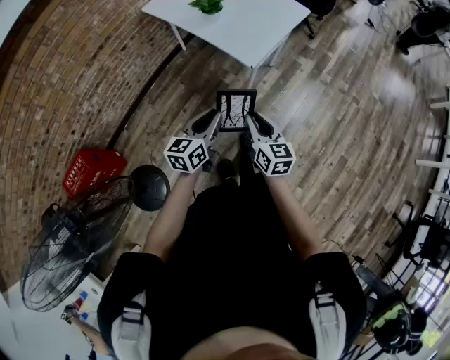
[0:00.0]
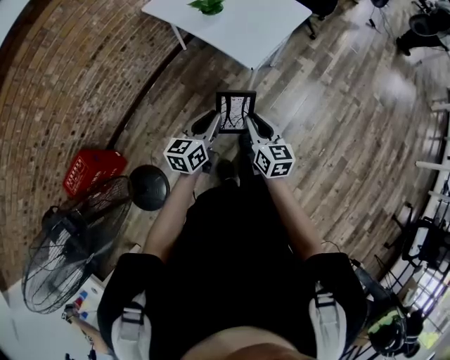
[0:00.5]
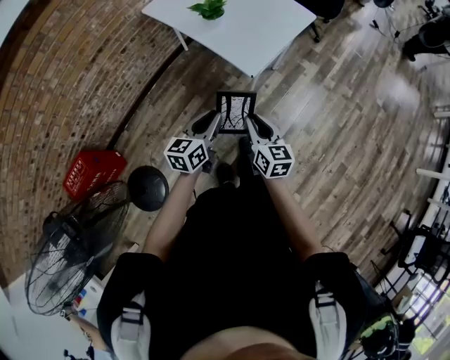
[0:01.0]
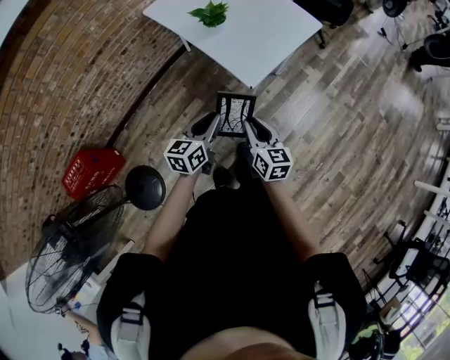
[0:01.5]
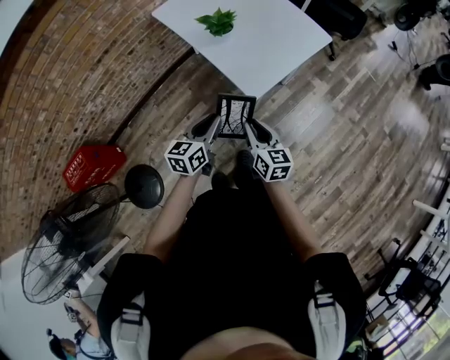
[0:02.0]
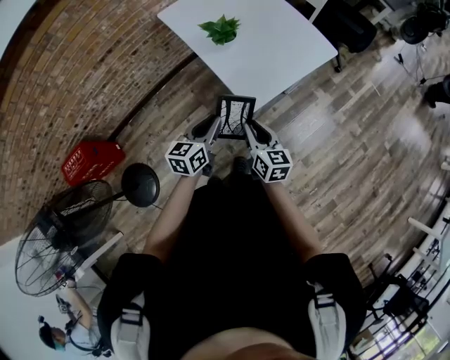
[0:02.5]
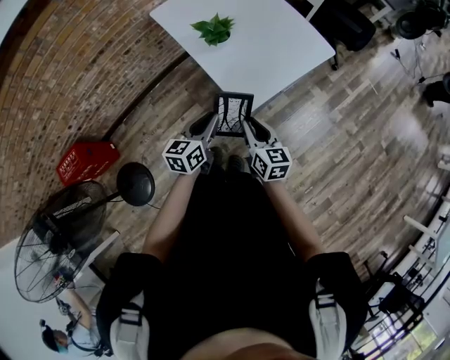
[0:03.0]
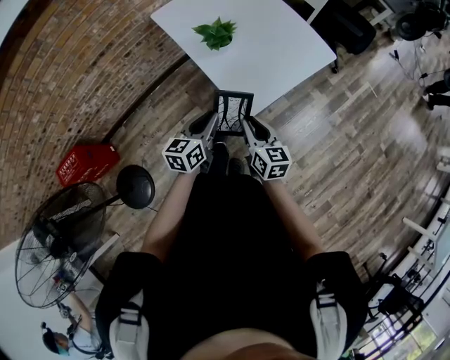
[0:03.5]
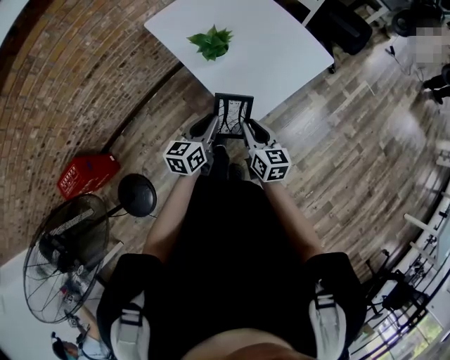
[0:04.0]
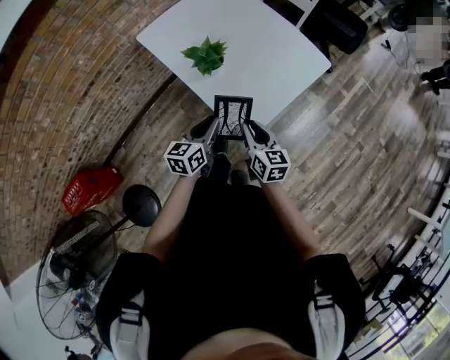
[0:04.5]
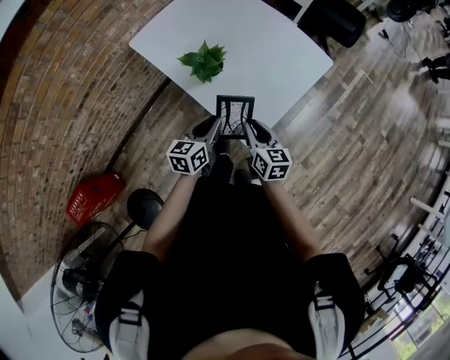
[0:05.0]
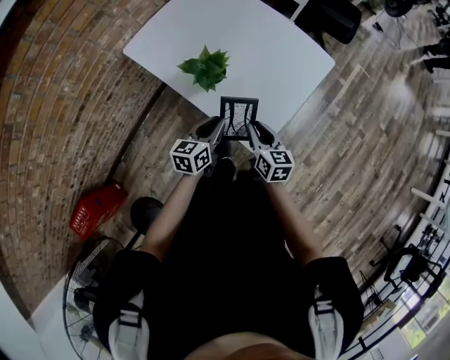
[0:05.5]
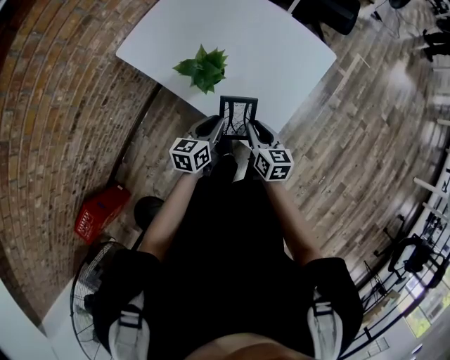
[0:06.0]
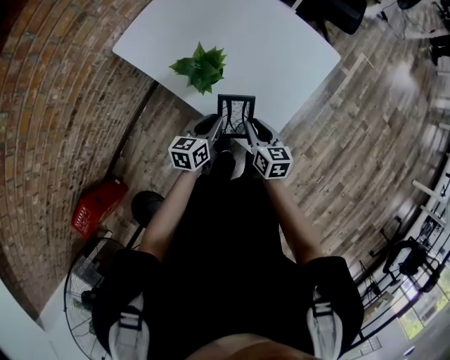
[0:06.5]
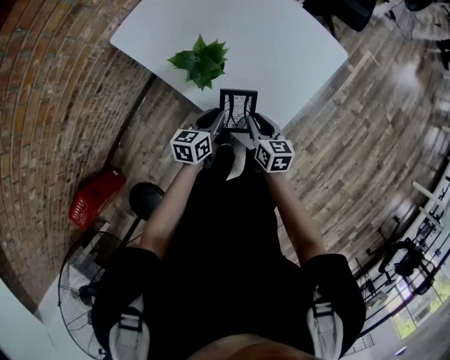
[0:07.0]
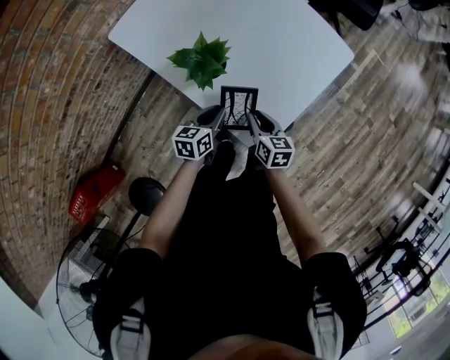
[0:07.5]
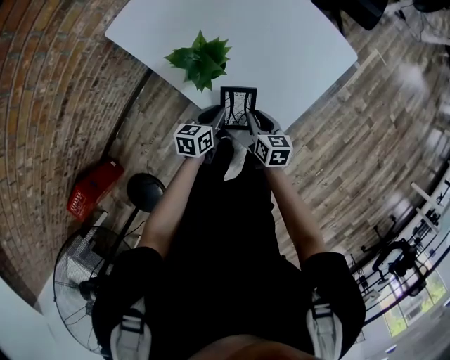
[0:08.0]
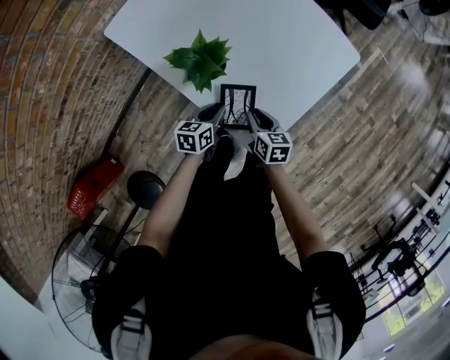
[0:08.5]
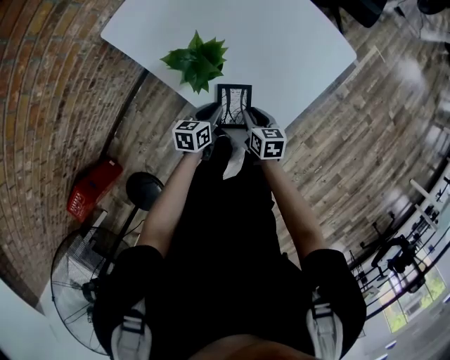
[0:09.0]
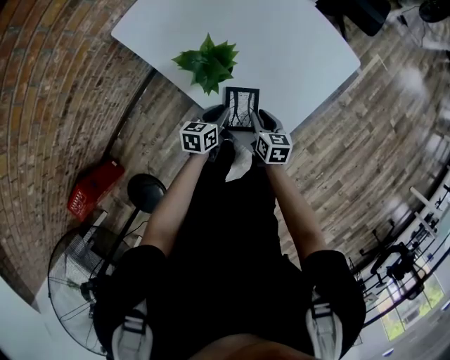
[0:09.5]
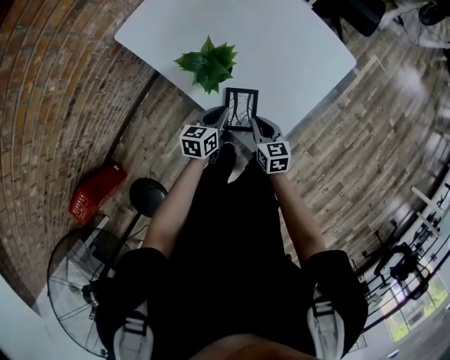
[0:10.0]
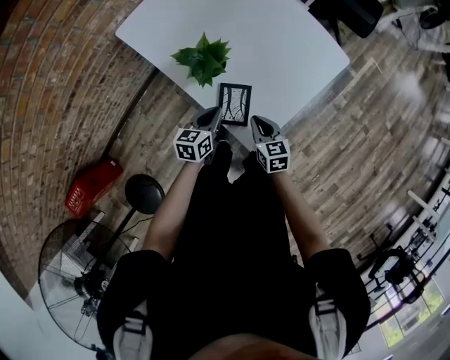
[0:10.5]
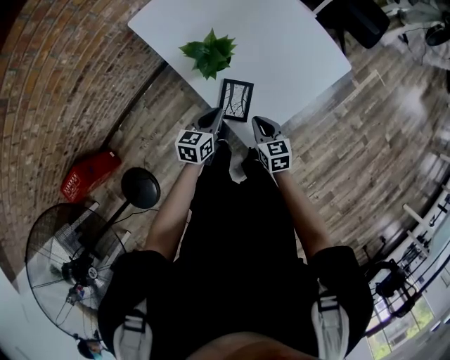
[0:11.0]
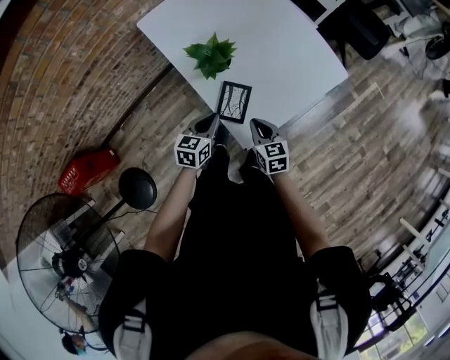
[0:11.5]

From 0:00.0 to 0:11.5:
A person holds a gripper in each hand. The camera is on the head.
From 0:00.0 to 0:02.0: Both grippers travel together forward, about 15 cm.
From 0:02.0 to 0:04.0: The grippers both shift forward by about 15 cm.
From 0:04.0 to 0:06.0: The two grippers go roughly 15 cm forward and downward.
From 0:06.0 to 0:07.5: The two grippers go about 10 cm downward.
From 0:07.5 to 0:09.5: There are only small adjustments of the grippers.
From 0:09.5 to 0:11.5: Both grippers move upward and backward, approximately 15 cm. The right gripper changes its angle by roughly 30 degrees, and closes up.

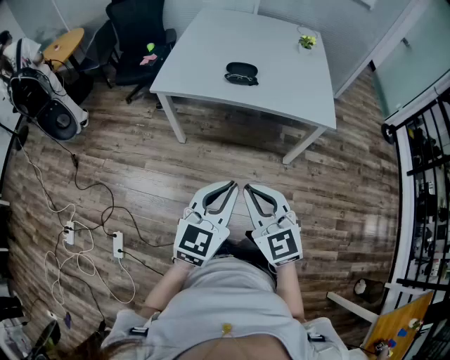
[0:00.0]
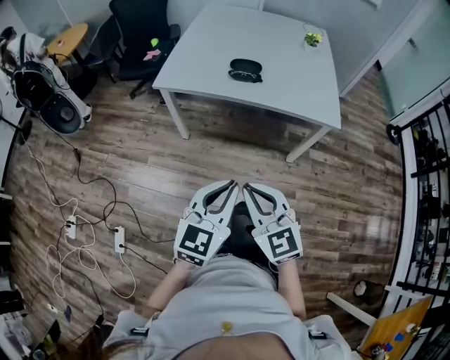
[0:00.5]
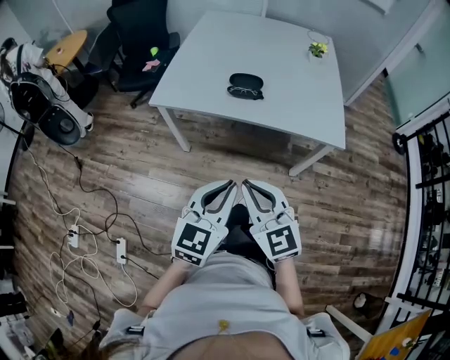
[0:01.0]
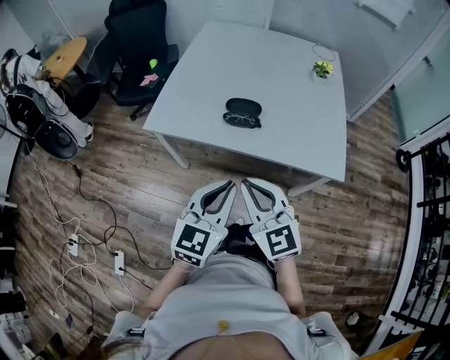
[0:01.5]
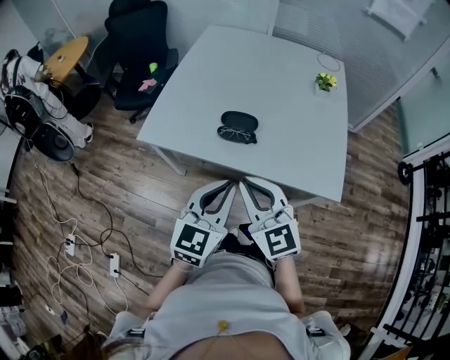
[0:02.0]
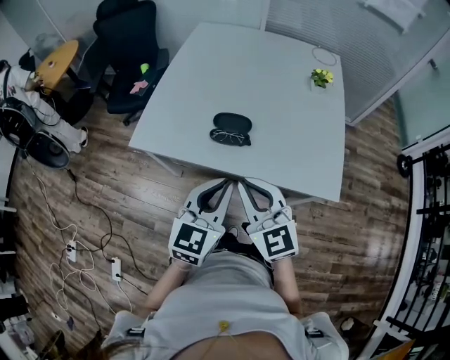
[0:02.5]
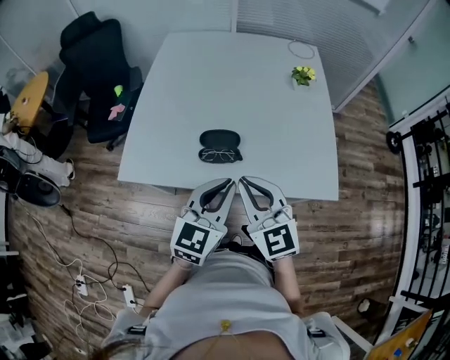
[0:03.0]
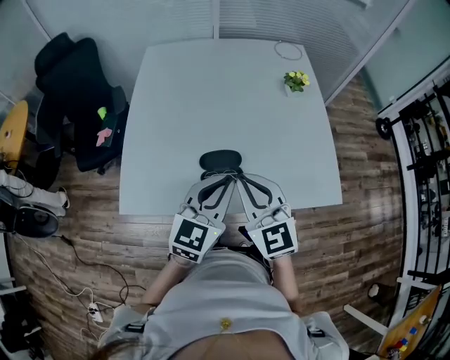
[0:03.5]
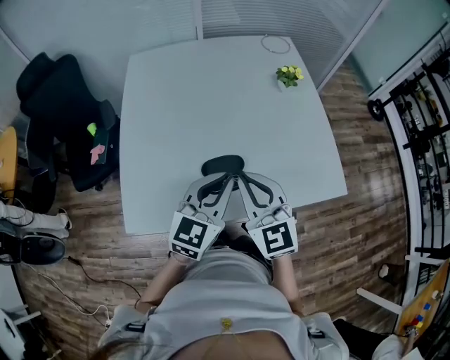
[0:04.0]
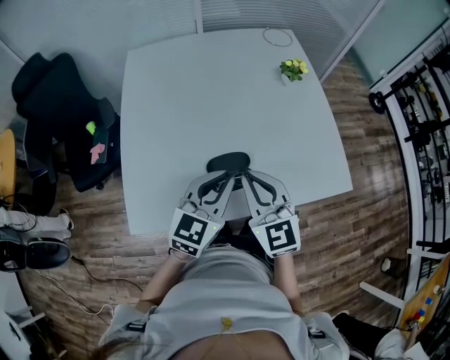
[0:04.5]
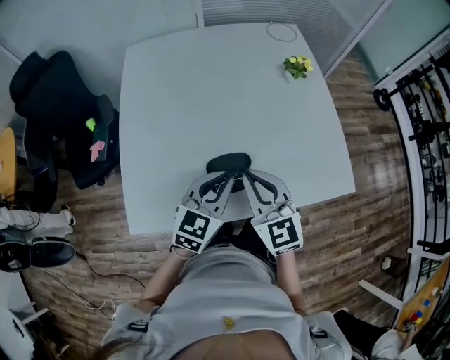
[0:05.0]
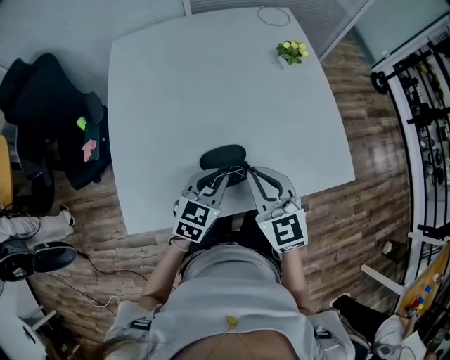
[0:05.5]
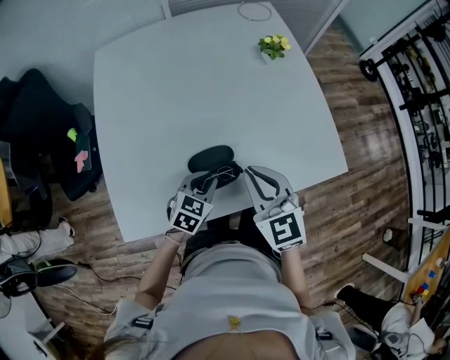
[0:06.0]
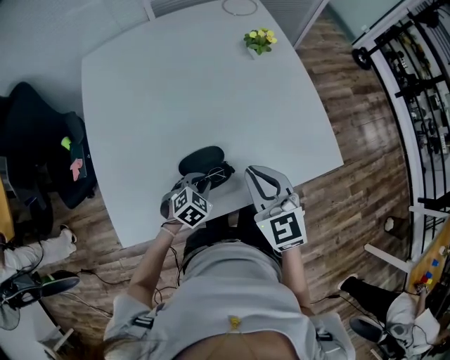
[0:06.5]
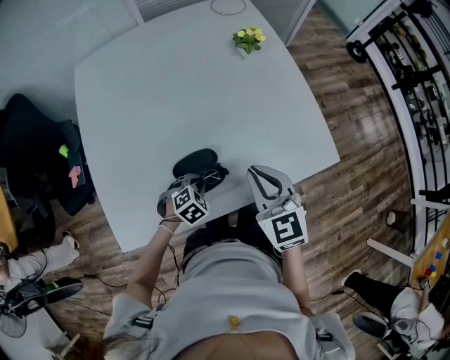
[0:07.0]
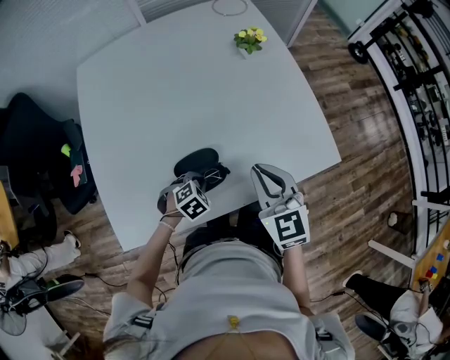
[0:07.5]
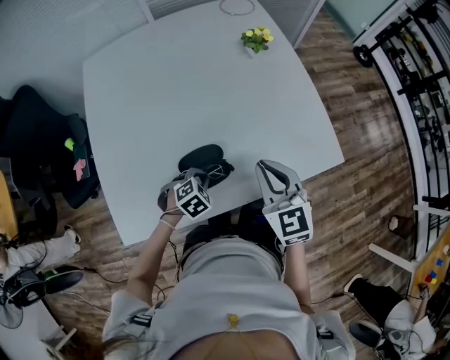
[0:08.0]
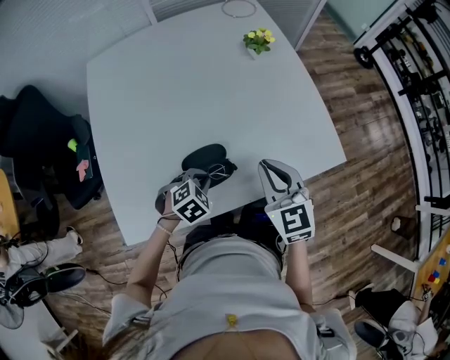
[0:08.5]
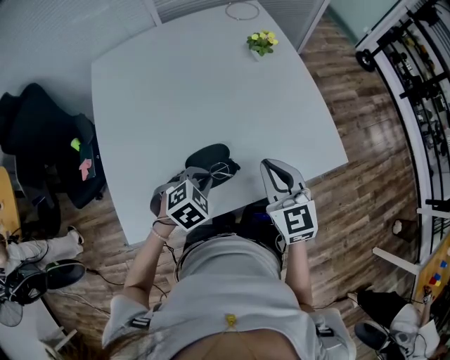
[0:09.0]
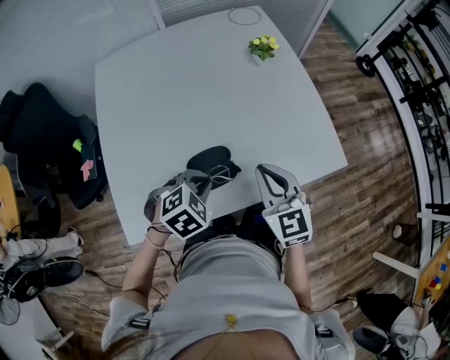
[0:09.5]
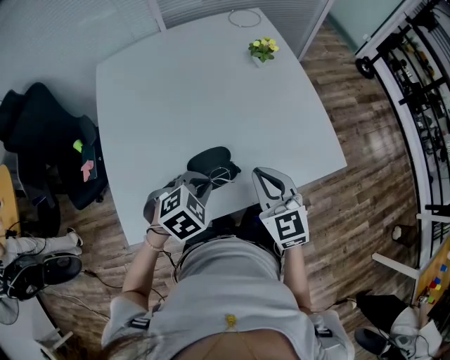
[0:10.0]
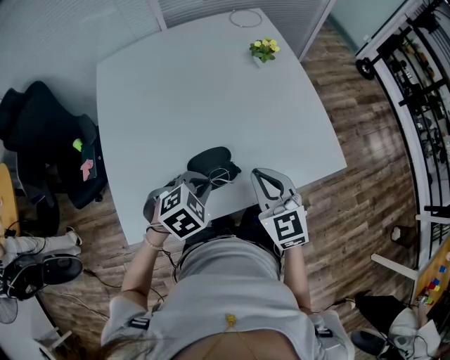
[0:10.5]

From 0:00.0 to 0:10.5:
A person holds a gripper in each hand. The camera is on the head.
From 0:00.0 to 0:02.0: Both grippers travel together forward, some 30 cm.
From 0:02.0 to 0:04.0: The left gripper moves about 25 cm, and turns by roughly 30 degrees. The right gripper shifts by some 25 cm, and turns by some 30 degrees.
From 0:04.0 to 0:06.5: The left gripper goes about 25 cm downward, and tips its fingers downward by approximately 40 degrees. Meanwhile the right gripper shifts about 10 cm to the right and downward.
From 0:06.5 to 0:08.5: The grippers stay close to where they were, moving slightly.
From 0:08.5 to 0:10.5: The left gripper moves upward, some 10 cm.

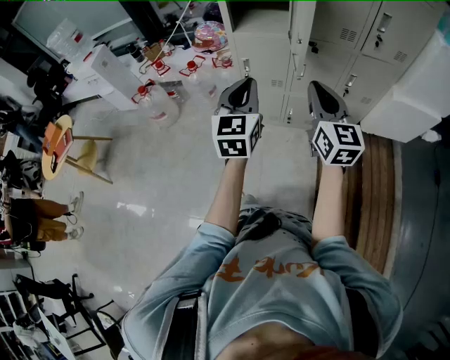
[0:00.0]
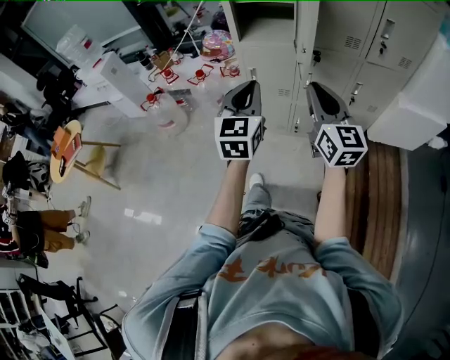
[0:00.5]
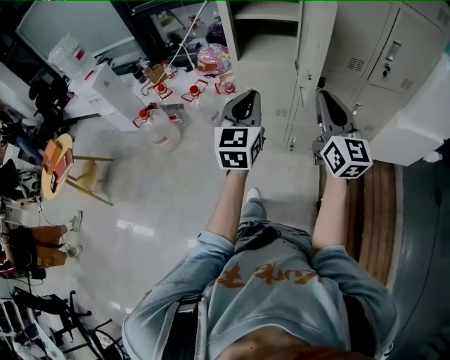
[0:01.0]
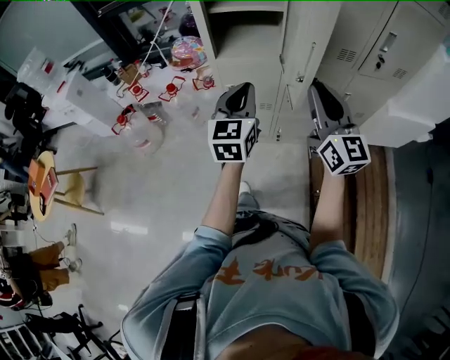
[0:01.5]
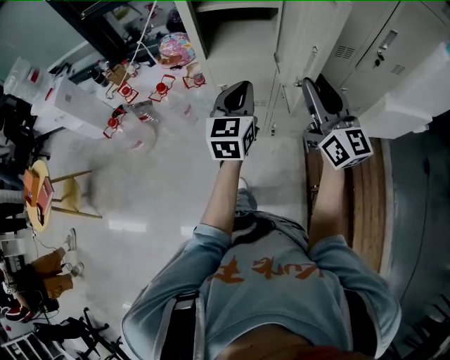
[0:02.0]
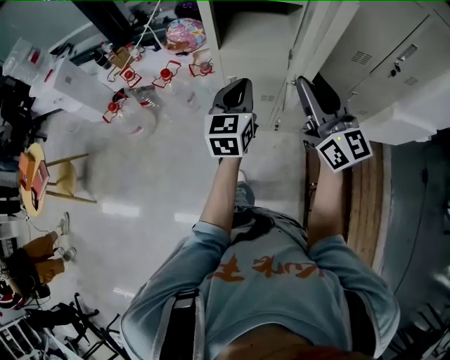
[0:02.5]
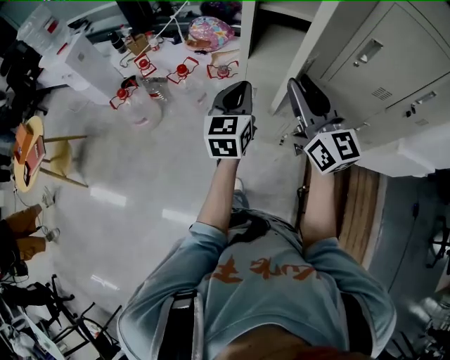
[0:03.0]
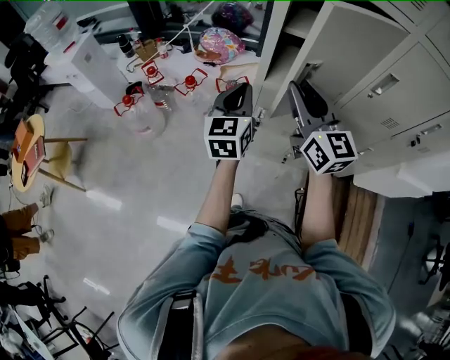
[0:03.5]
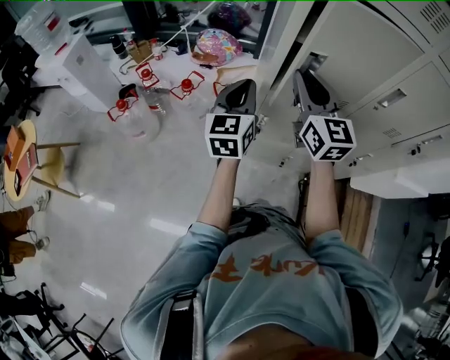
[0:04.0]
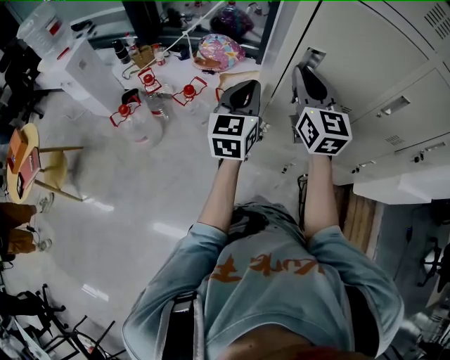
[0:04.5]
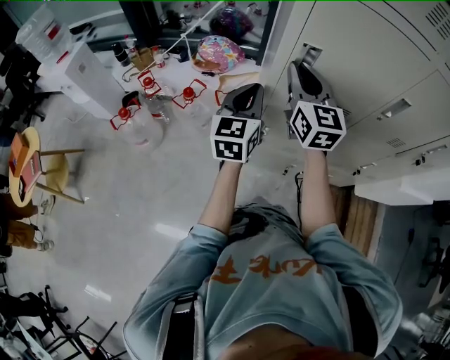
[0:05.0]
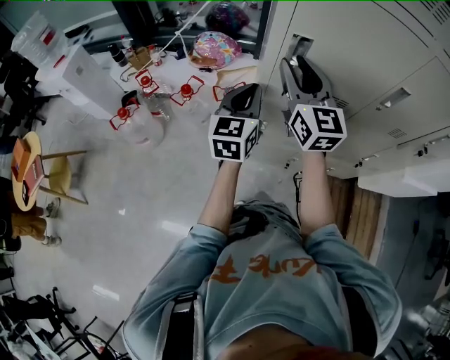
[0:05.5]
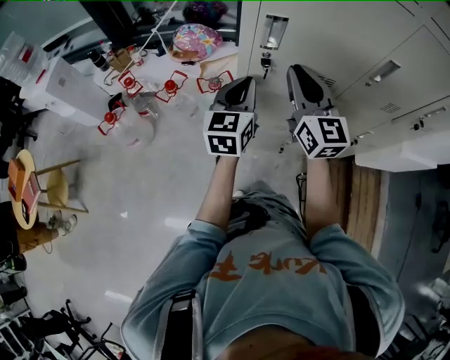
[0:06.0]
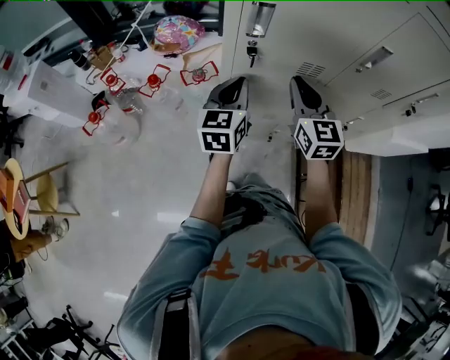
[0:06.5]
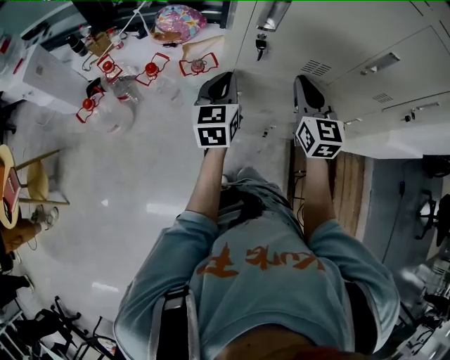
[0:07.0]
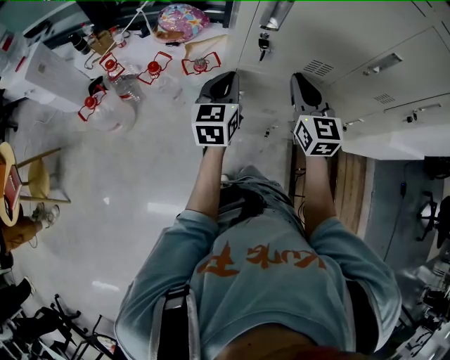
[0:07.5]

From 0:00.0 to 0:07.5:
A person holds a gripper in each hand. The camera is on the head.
From 0:00.0 to 0:02.0: The grippers both shift forward by about 20 cm. The right gripper opens its fingers.
From 0:02.0 to 0:04.0: The left gripper heads to the left and forward, covering approximately 25 cm. Meanwhile the right gripper travels forward and to the left by some 30 cm.
From 0:04.0 to 0:05.5: The left gripper moves roughly 5 cm.
From 0:05.5 to 0:07.5: The left gripper moves downward, about 10 cm, while the right gripper shifts about 15 cm downward and to the right, and closes.
